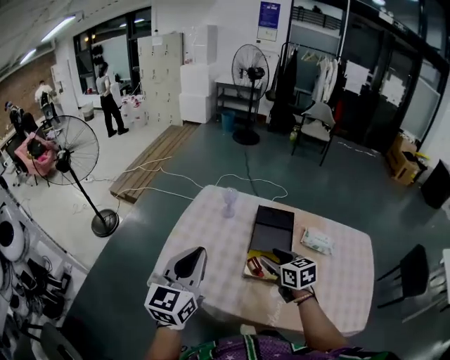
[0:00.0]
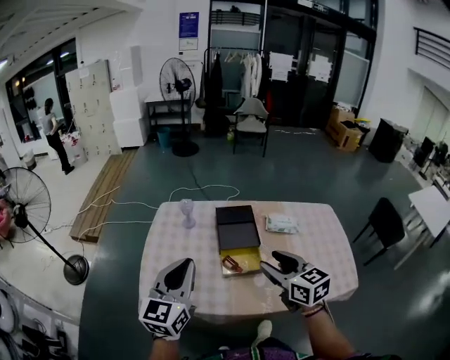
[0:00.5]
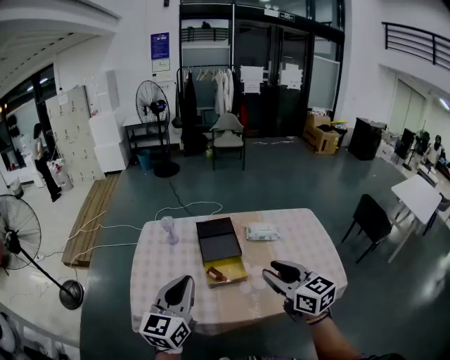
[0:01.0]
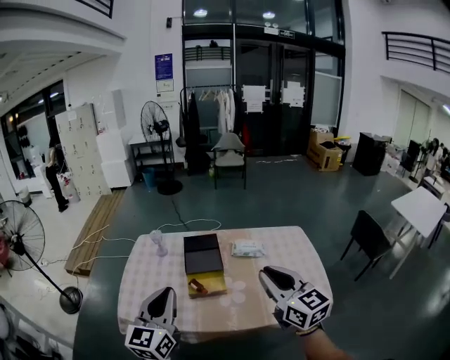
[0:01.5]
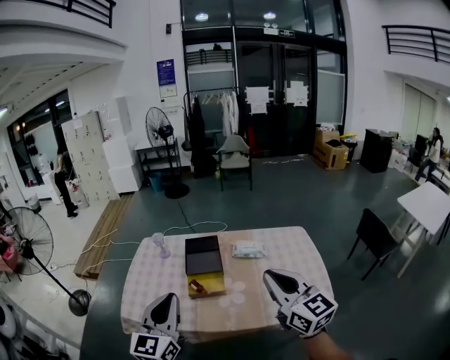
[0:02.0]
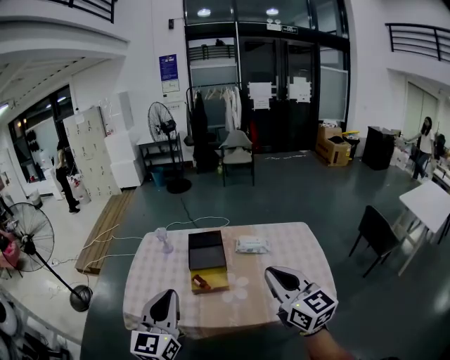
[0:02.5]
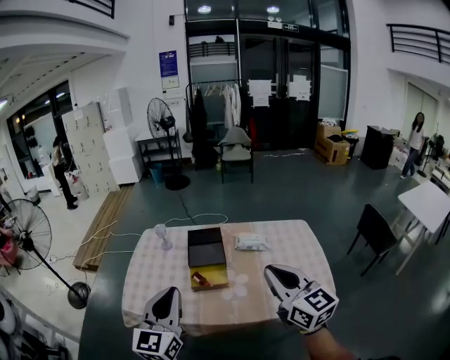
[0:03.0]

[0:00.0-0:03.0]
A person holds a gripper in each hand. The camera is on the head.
0:00.0 to 0:01.5: The right gripper goes approximately 40 cm backward, upward and to the right, rotates approximately 40 degrees, and closes up. Meanwhile the left gripper heads to the right and backward, covering approximately 20 cm.

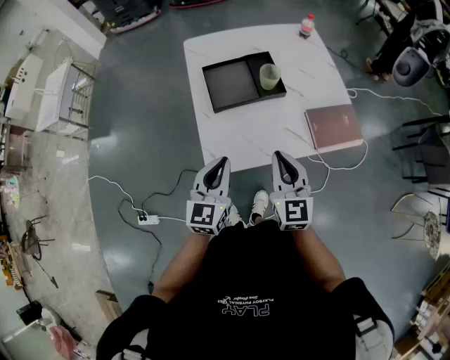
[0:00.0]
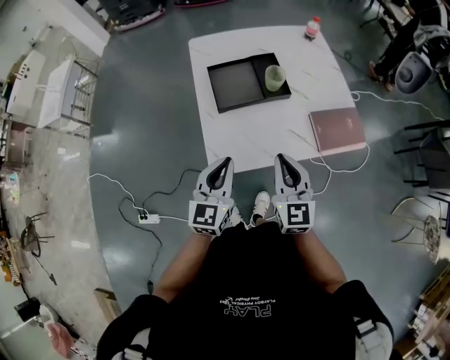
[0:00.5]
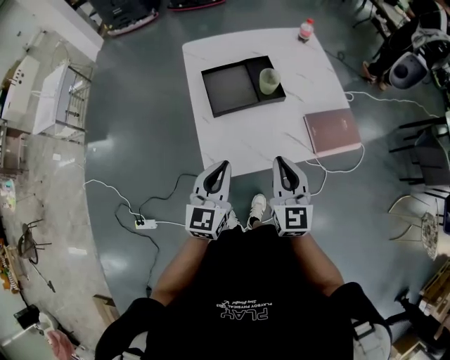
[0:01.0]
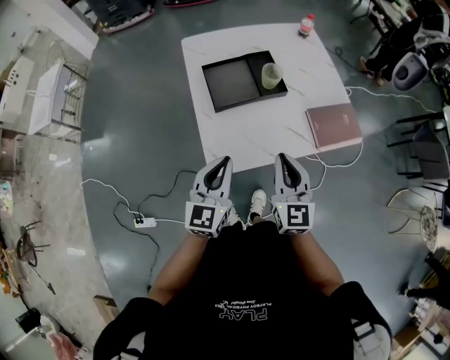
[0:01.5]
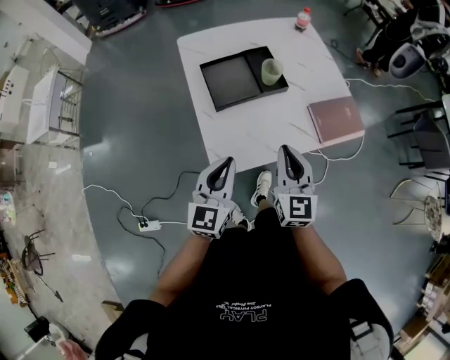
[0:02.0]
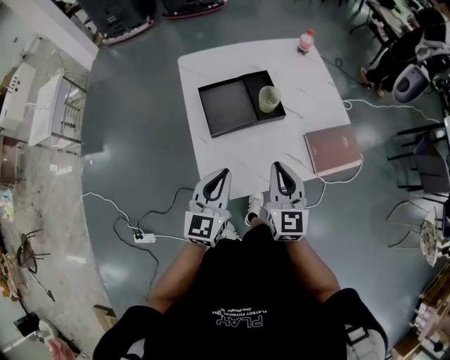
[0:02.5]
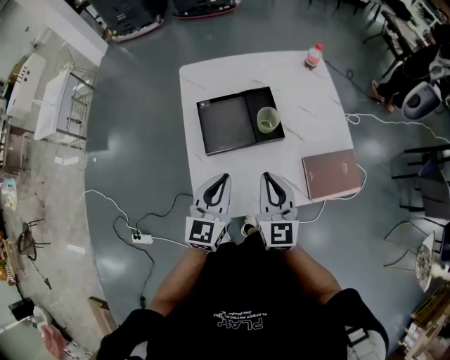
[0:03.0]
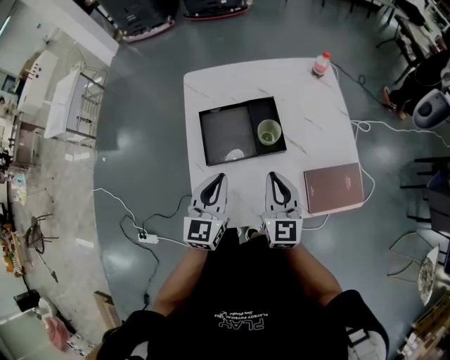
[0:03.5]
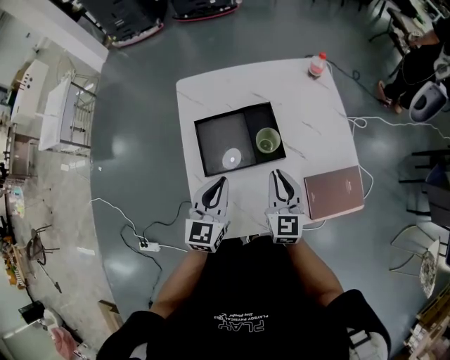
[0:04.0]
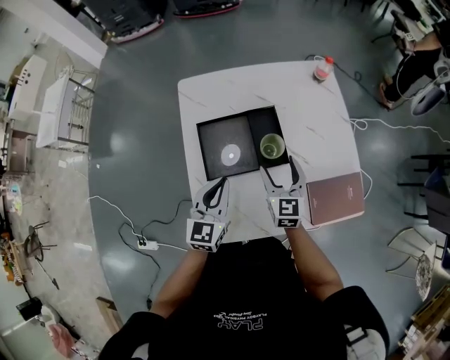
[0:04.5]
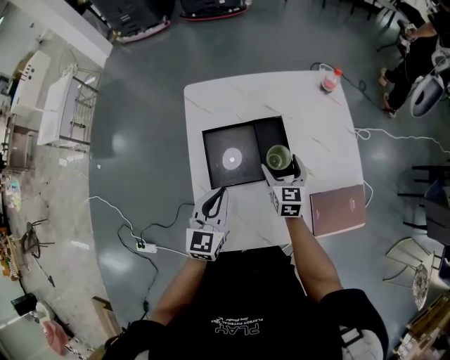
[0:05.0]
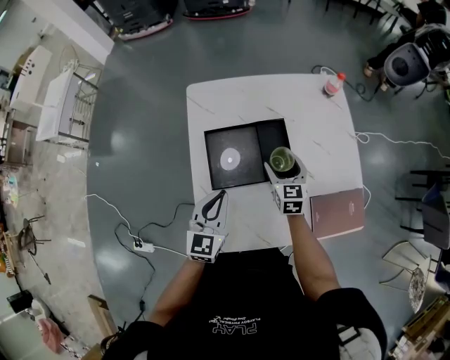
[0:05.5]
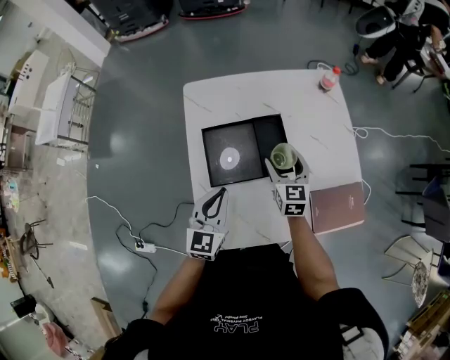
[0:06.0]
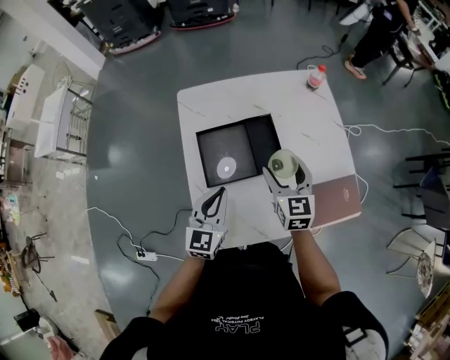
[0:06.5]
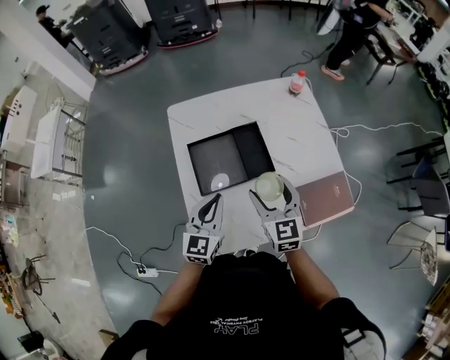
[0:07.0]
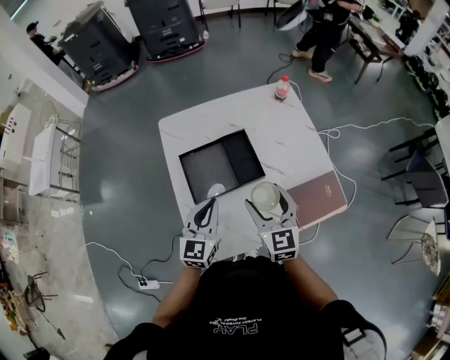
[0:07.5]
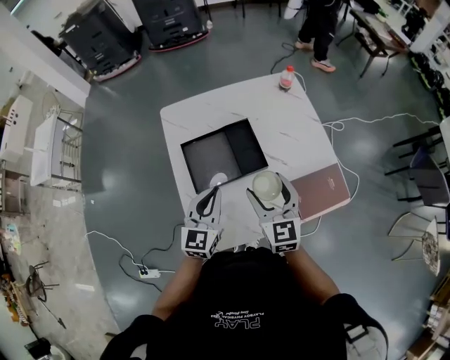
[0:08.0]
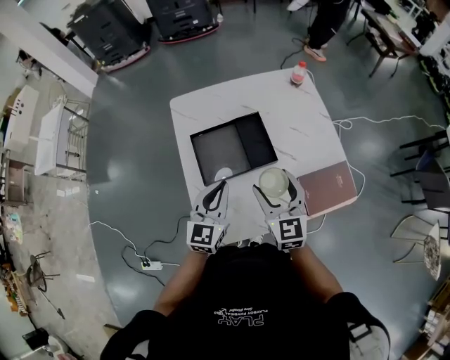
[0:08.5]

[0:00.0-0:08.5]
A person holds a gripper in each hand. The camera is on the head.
0:00.0 to 0:02.0: The grippers make only small movements.
0:02.0 to 0:04.0: Both grippers travel together forward, about 20 cm.
0:04.0 to 0:06.5: The right gripper goes roughly 5 cm forward, and opens.
0:06.5 to 0:08.5: The right gripper is displaced backward by roughly 10 cm.

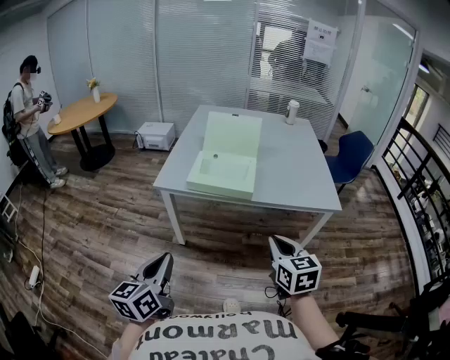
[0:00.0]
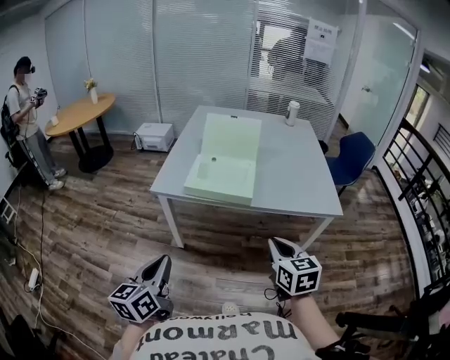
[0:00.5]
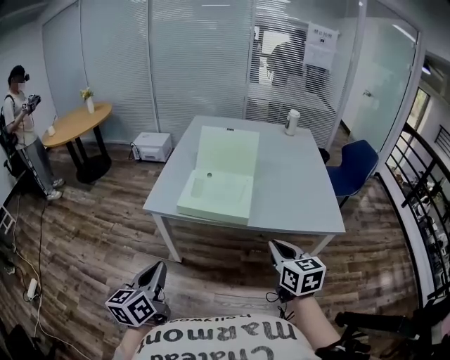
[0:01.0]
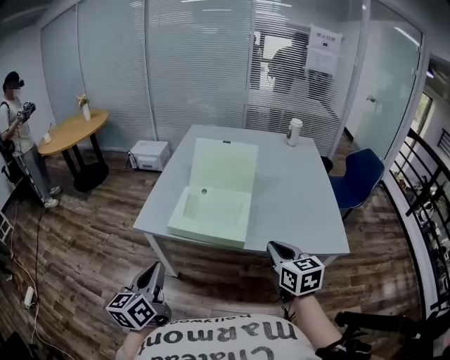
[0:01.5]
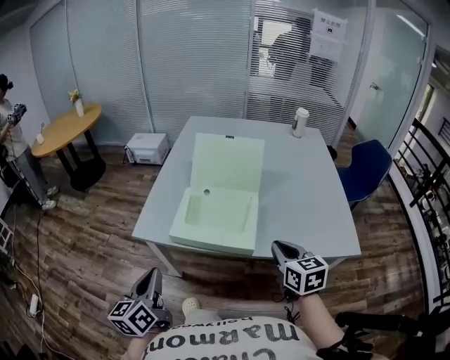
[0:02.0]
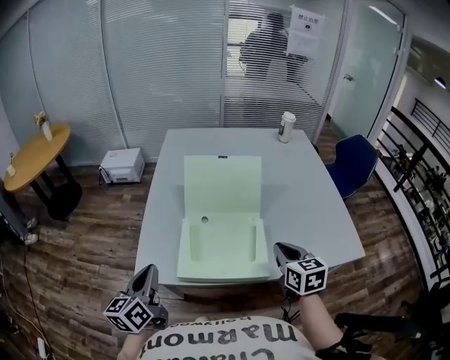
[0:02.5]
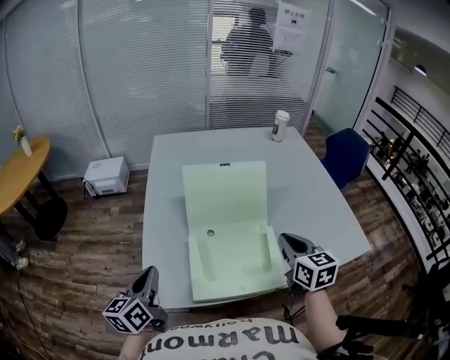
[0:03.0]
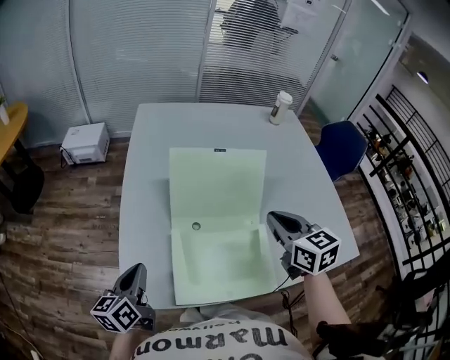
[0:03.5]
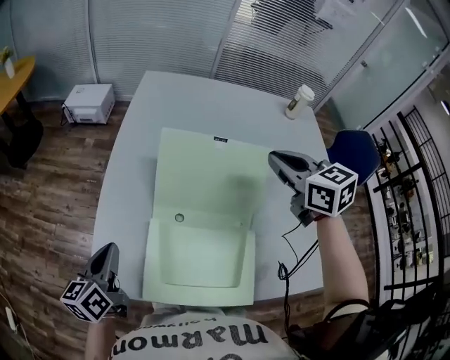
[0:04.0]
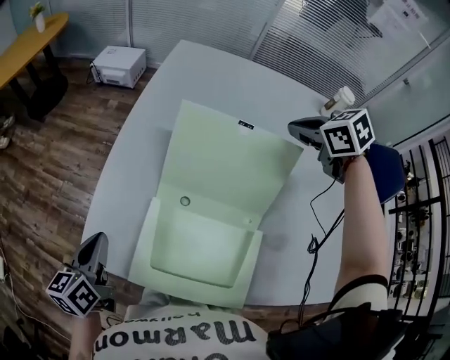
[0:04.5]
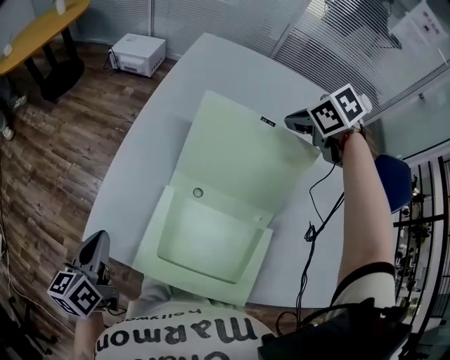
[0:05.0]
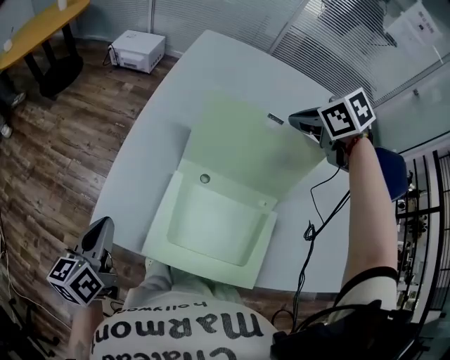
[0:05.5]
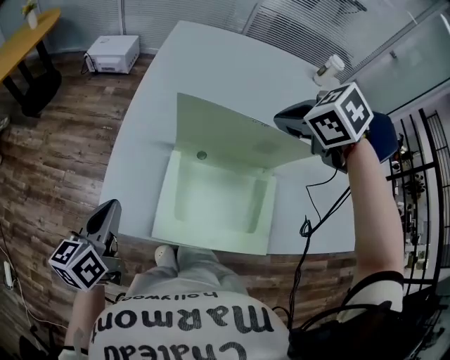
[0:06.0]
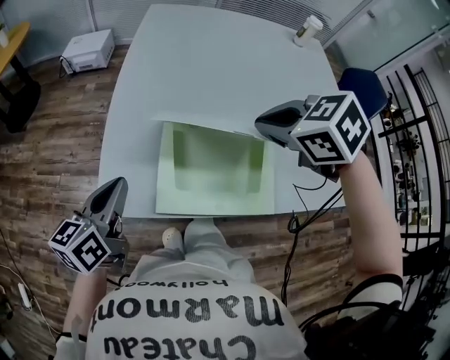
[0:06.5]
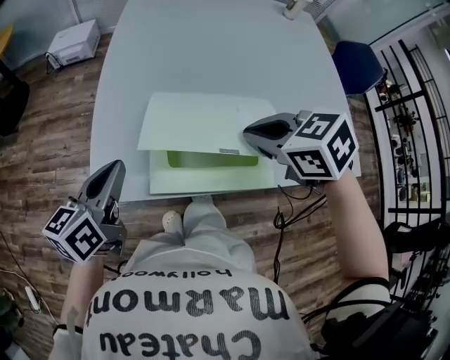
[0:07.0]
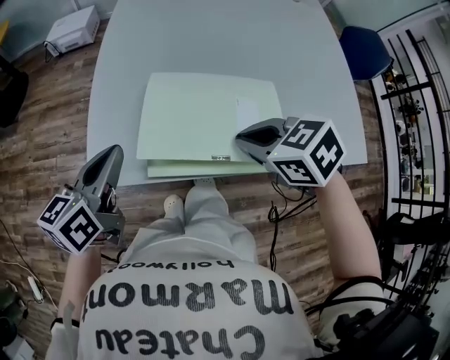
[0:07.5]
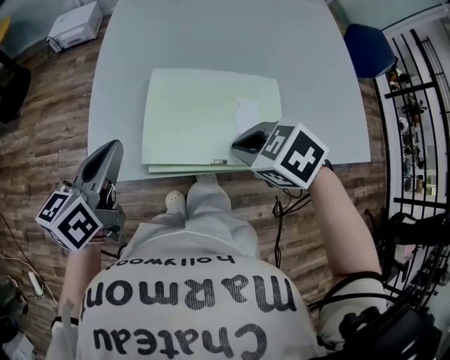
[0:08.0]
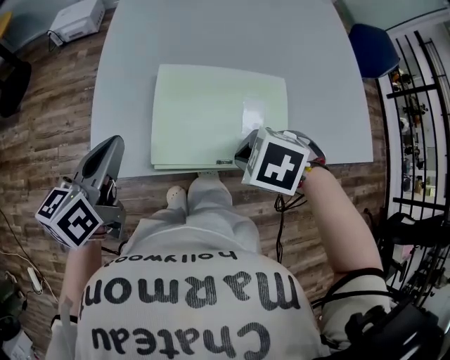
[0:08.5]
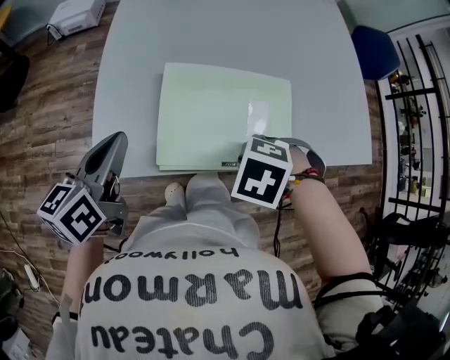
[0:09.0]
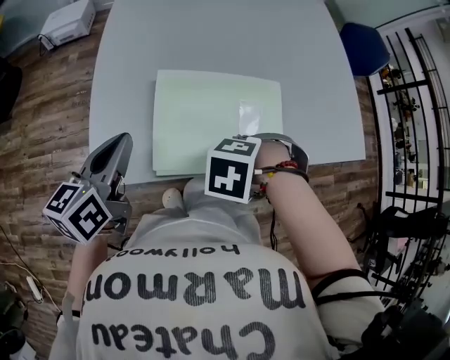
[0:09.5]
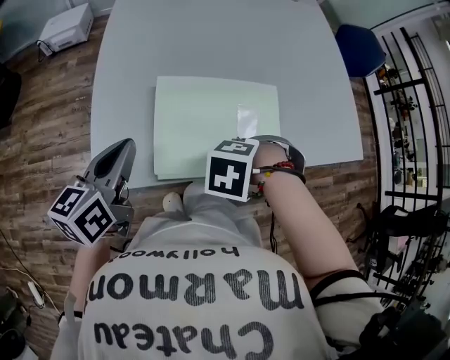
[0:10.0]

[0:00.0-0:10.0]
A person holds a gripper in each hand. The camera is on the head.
0:00.0 to 0:02.0: Both grippers travel together forward, roughly 25 cm.
0:02.0 to 0:04.0: The grippers both shift forward by about 35 cm.
0:04.0 to 0:06.0: The left gripper heads backward, covering roughly 5 cm, while the right gripper moves to the left, roughly 10 cm, travels forward and back again, approximately 10 cm each way, and points its fingers some 30 degrees further downward.
0:06.0 to 0:08.0: The right gripper is displaced backward and downward by some 25 cm. Meanwhile the left gripper goes some 5 cm to the right.
0:08.0 to 0:10.0: The right gripper is displaced downward by roughly 5 cm, and swivels approximately 40 degrees.

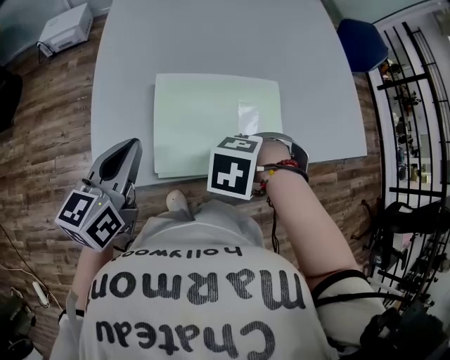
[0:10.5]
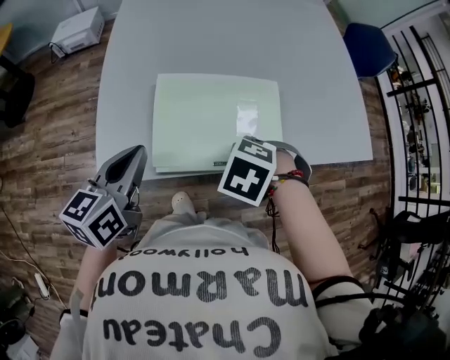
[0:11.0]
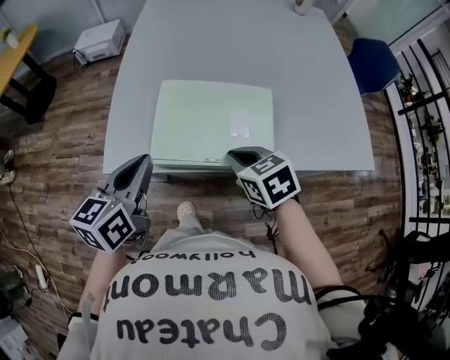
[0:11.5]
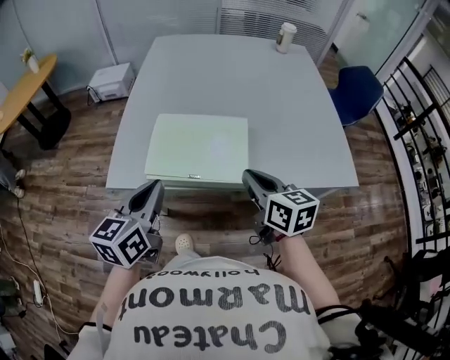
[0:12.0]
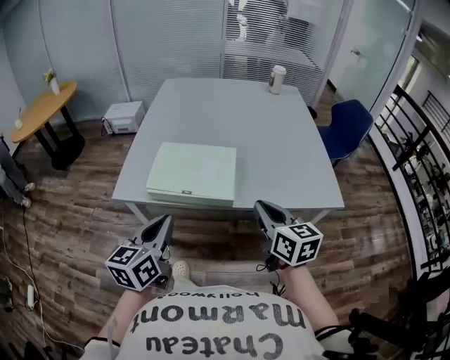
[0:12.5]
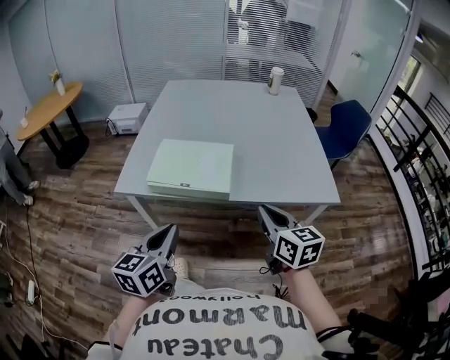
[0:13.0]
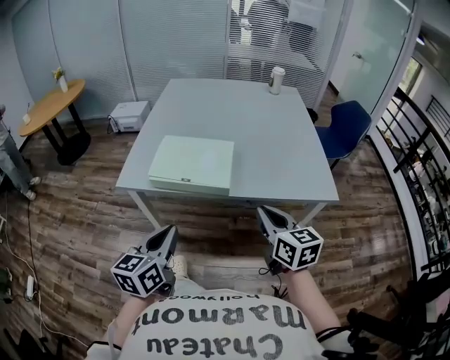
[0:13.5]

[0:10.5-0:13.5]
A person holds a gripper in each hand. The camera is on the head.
0:10.5 to 0:12.0: The left gripper shifts by some 20 cm; the right gripper moves about 20 cm, and tips its fingers upward by approximately 60 degrees.
0:12.0 to 0:13.5: Both grippers move backward and to the right, approximately 20 cm.

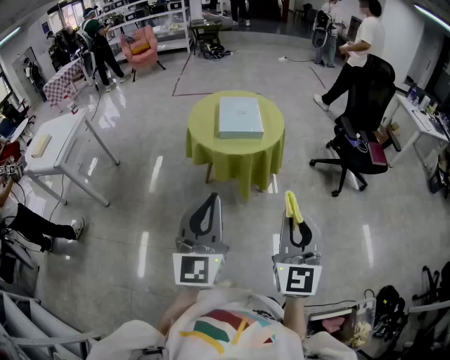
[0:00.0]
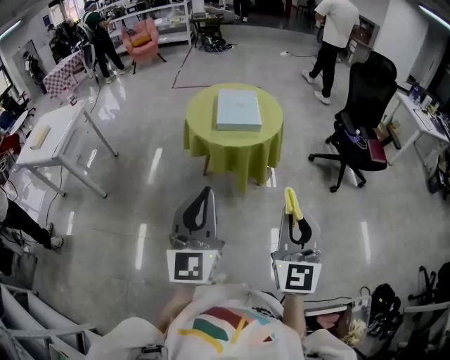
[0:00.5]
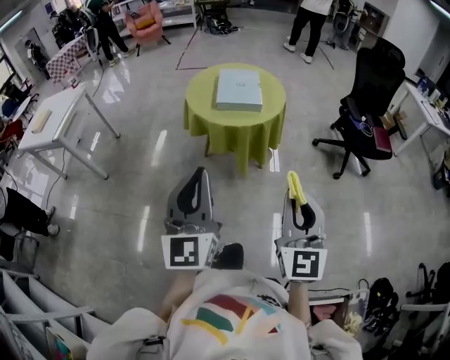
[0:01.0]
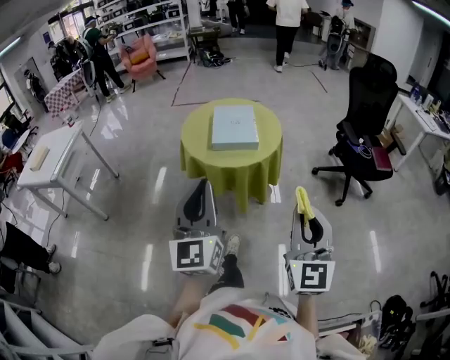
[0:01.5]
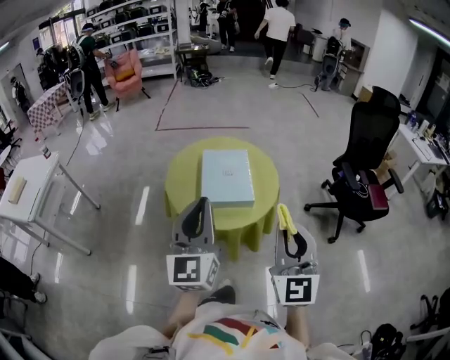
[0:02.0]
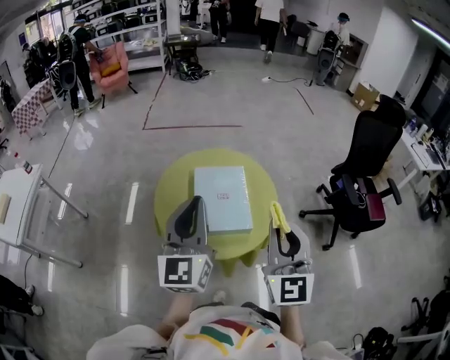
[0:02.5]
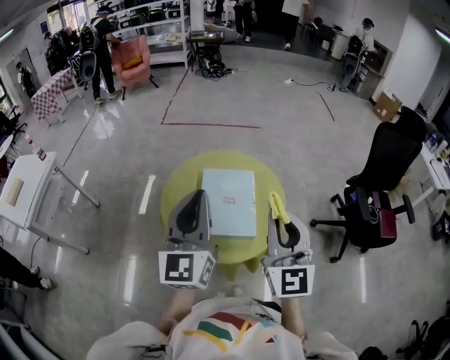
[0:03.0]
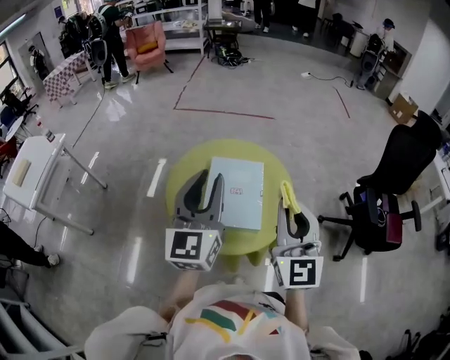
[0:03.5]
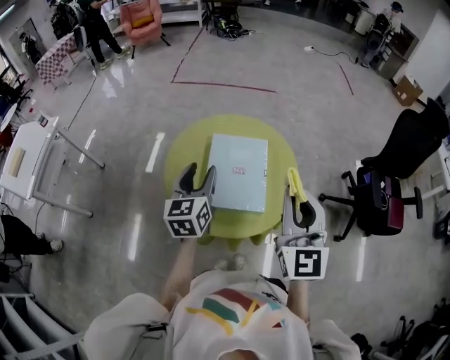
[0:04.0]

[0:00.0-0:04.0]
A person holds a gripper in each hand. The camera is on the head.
0:00.0 to 0:02.0: The two grippers go some 30 cm forward.
0:02.0 to 0:04.0: The right gripper heads forward, covering approximately 25 cm; the left gripper shifts about 30 cm forward and downward, swivels some 30 degrees, and opens its fingers.
